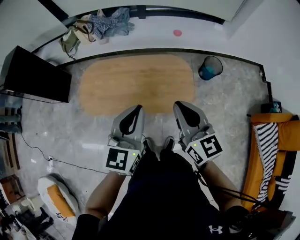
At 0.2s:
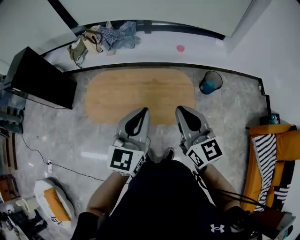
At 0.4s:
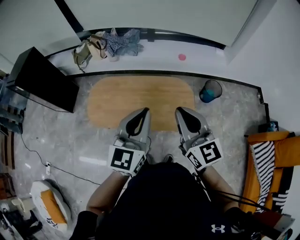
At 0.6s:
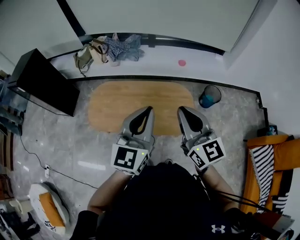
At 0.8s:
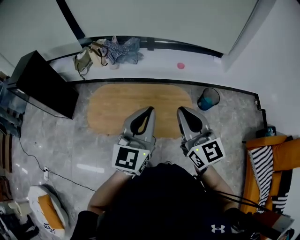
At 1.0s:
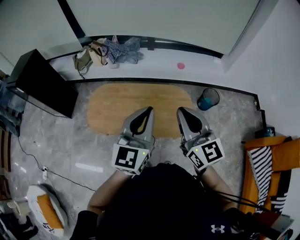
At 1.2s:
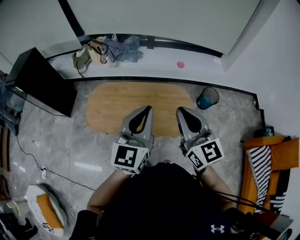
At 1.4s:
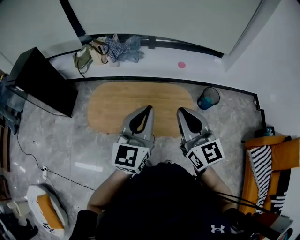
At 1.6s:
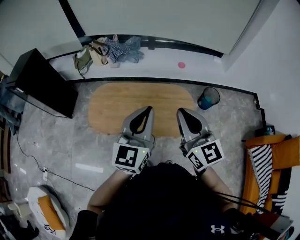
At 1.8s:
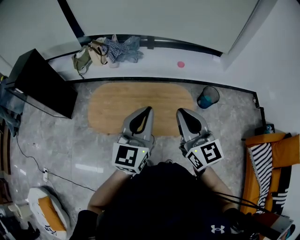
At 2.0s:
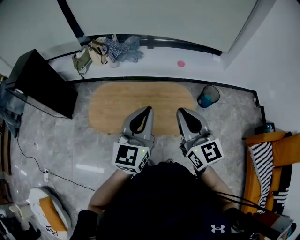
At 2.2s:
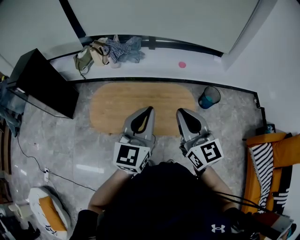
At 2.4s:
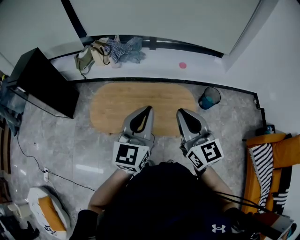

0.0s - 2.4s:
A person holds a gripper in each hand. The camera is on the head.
0.0s - 1.2s: The grippers both shift upward by about 10 cm.
1.2s - 2.4s: The grippers move only a little.

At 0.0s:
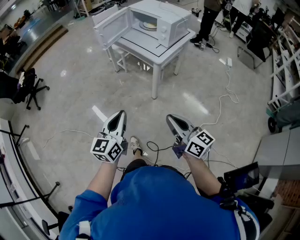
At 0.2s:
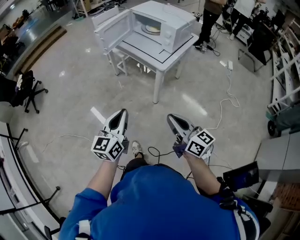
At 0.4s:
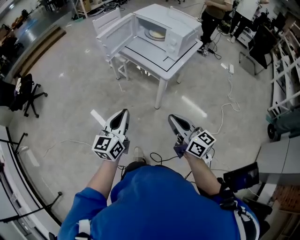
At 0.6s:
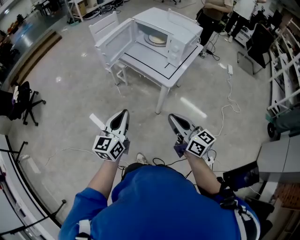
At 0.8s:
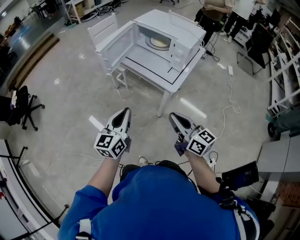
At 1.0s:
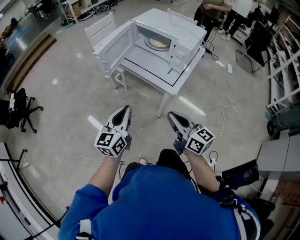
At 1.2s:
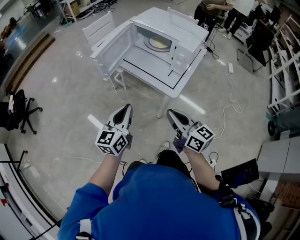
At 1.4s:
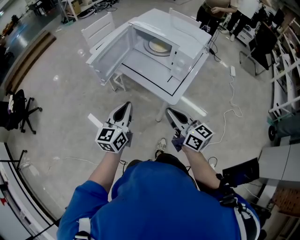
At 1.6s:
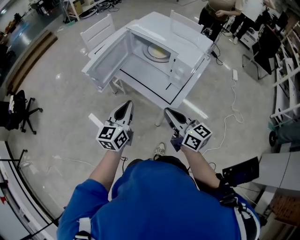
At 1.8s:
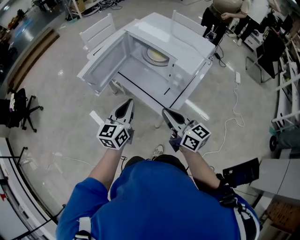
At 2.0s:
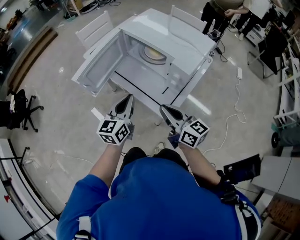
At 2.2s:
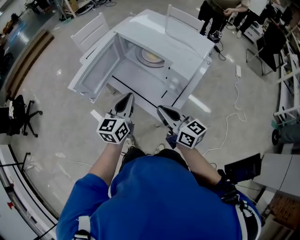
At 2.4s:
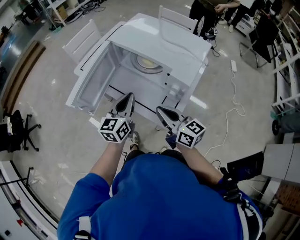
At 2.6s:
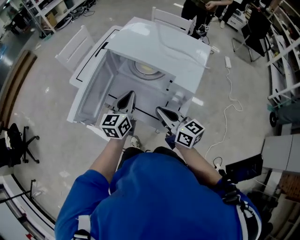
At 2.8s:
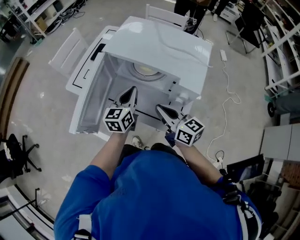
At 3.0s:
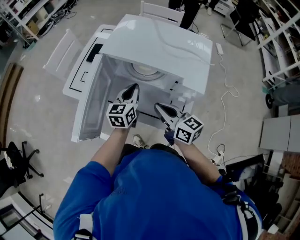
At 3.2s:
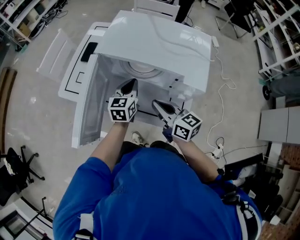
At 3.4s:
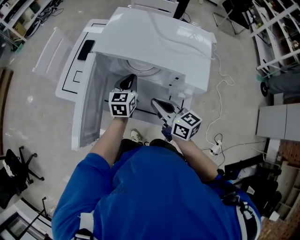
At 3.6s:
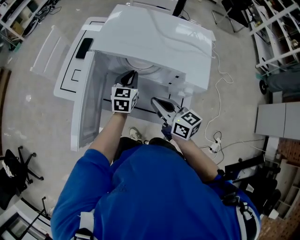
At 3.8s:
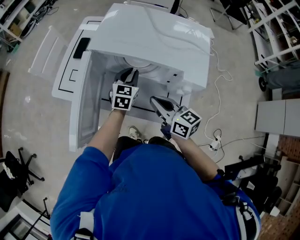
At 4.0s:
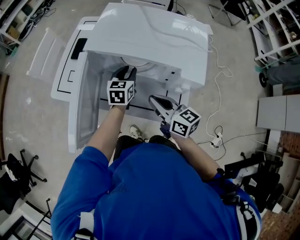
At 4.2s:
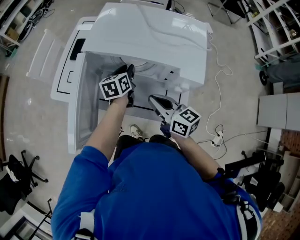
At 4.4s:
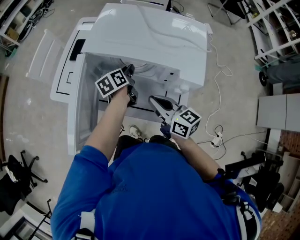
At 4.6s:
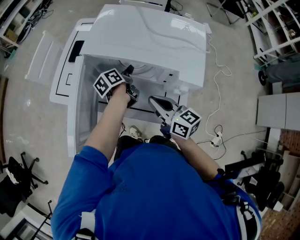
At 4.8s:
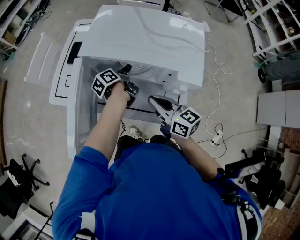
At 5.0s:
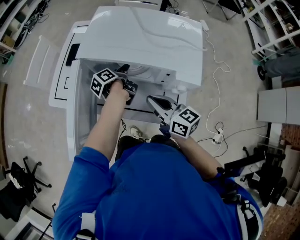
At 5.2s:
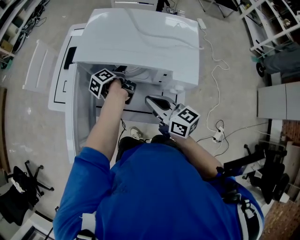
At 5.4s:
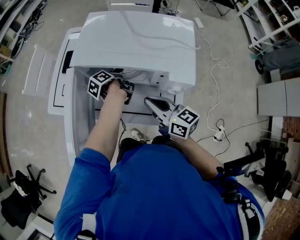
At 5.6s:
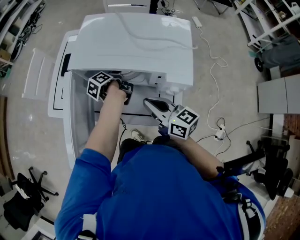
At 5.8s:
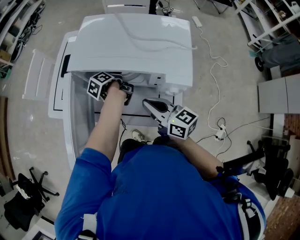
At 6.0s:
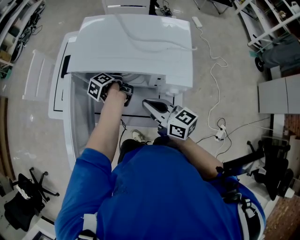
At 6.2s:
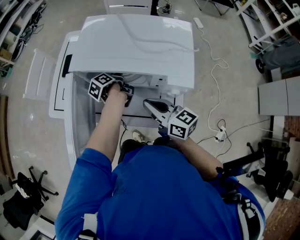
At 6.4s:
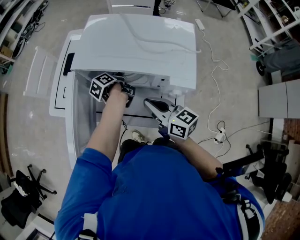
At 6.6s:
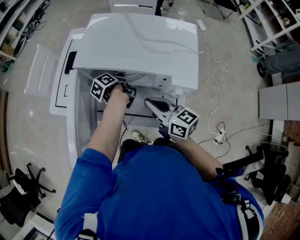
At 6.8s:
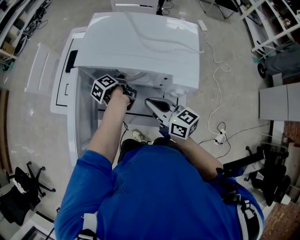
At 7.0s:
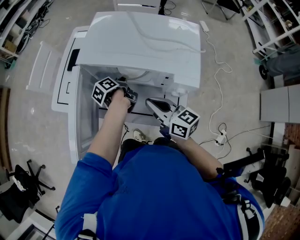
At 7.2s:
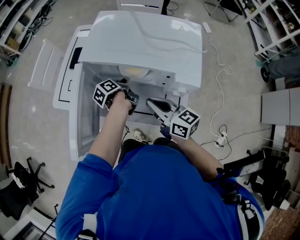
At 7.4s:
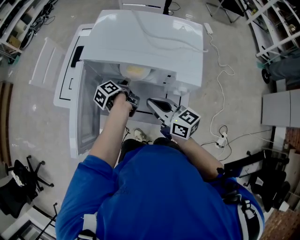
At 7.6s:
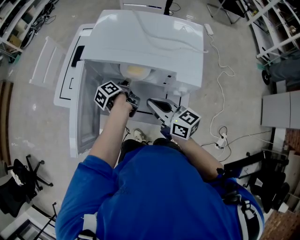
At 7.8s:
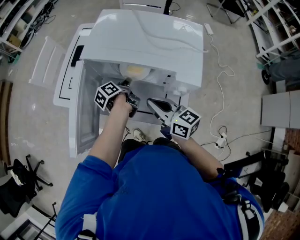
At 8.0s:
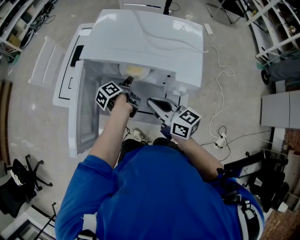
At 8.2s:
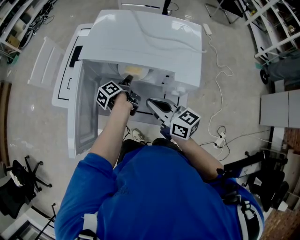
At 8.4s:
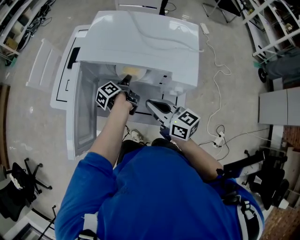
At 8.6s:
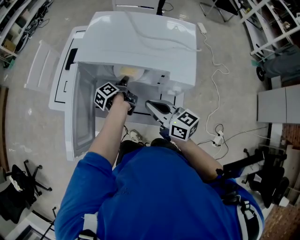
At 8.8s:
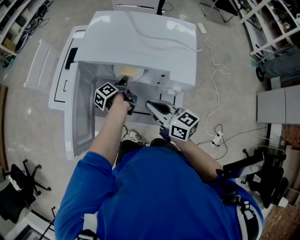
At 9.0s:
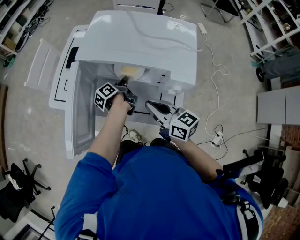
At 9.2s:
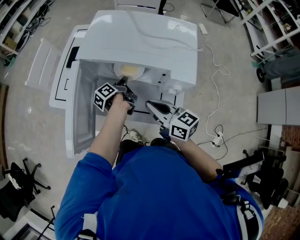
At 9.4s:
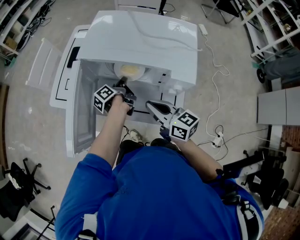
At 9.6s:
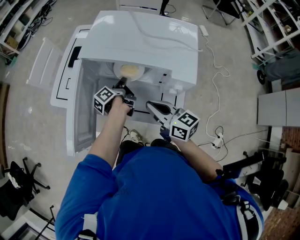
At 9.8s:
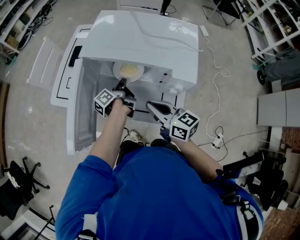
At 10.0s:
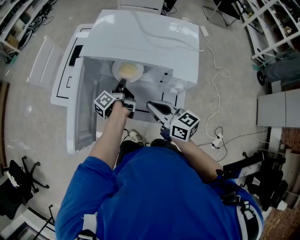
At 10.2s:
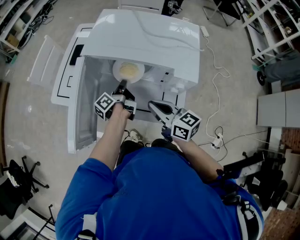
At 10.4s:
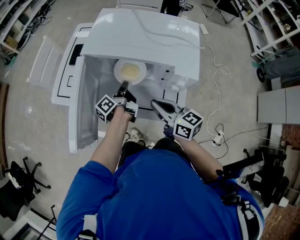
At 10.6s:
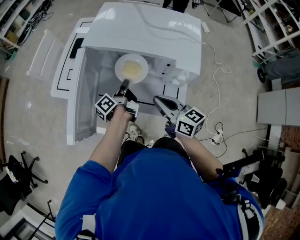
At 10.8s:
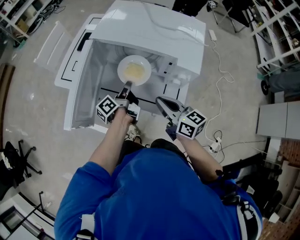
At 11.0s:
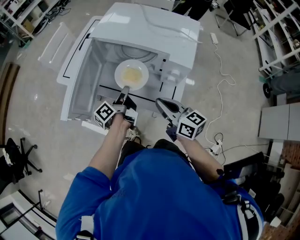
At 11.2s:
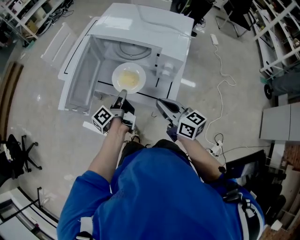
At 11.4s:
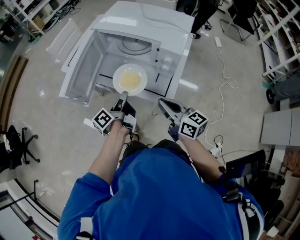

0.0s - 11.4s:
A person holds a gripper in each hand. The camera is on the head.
0.0s - 1.4s: The two grippers go approximately 35 cm forward.
1.4s - 2.8s: Both grippers travel together forward, about 25 cm.
2.8s - 4.2s: The left gripper heads forward and downward, covering some 15 cm, rotates about 20 degrees, and opens its fingers.
4.2s - 5.6s: The left gripper rolls counterclockwise, seen from behind, by approximately 50 degrees.
5.6s - 7.2s: The left gripper closes up.
7.2s - 8.6s: The left gripper opens its fingers.
8.6s - 10.0s: The left gripper closes up.
10.0s - 11.4s: The left gripper travels backward by about 25 cm; the right gripper goes approximately 15 cm backward.

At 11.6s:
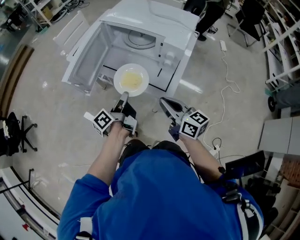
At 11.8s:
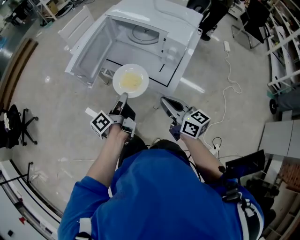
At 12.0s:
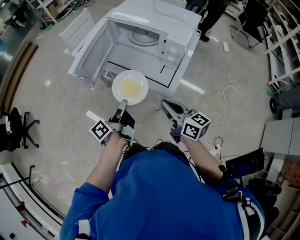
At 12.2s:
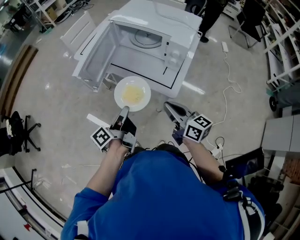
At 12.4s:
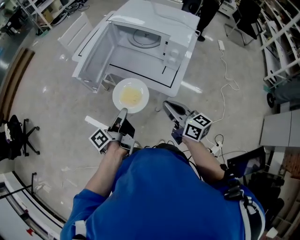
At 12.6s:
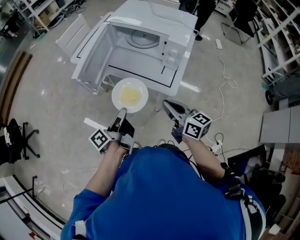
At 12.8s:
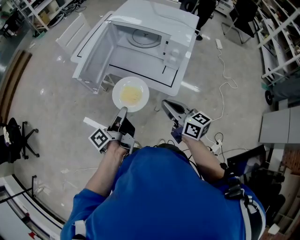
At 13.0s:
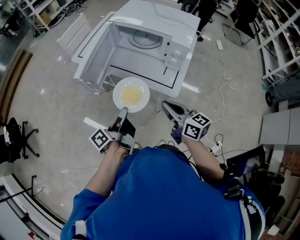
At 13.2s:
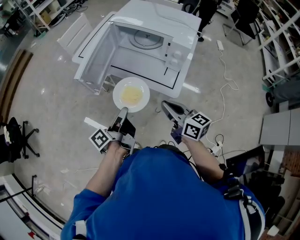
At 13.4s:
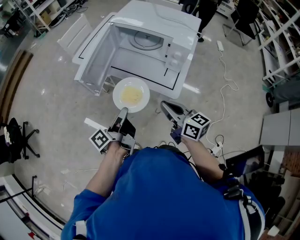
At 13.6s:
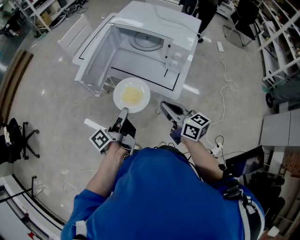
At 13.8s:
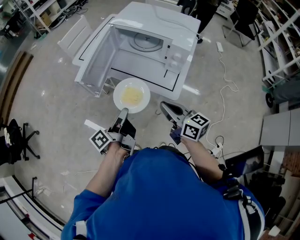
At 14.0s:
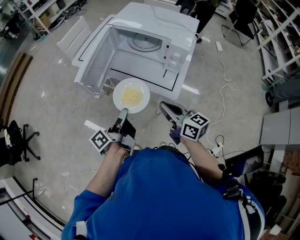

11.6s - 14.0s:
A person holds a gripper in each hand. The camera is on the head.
11.6s - 12.8s: The right gripper ends up roughly 5 cm from where it was. The left gripper is displaced backward and to the left by approximately 10 cm.
12.8s - 14.0s: The grippers make only small movements.

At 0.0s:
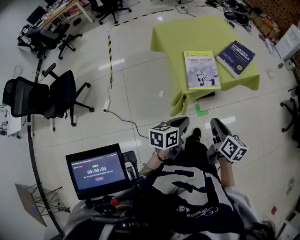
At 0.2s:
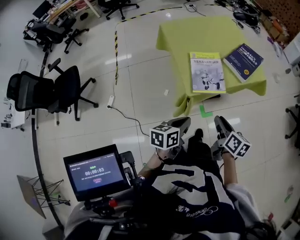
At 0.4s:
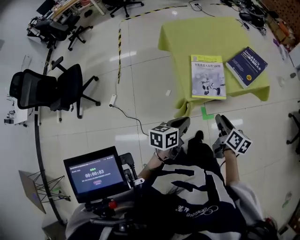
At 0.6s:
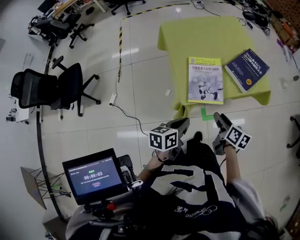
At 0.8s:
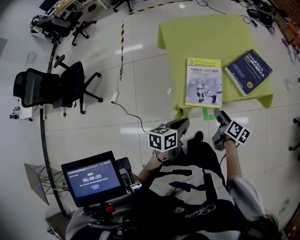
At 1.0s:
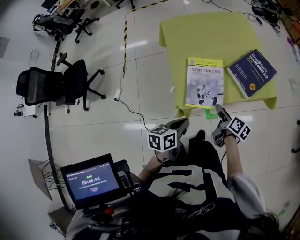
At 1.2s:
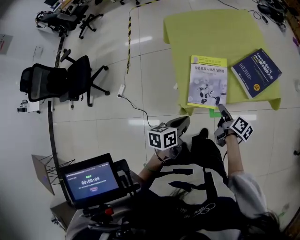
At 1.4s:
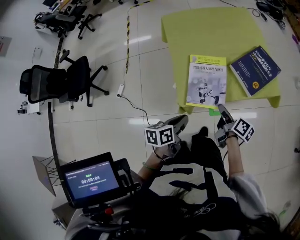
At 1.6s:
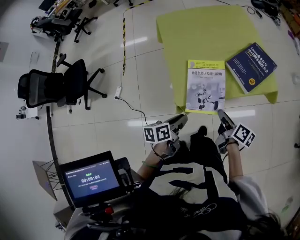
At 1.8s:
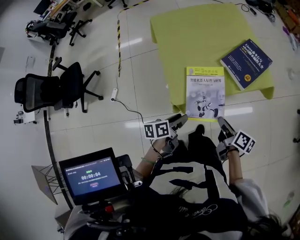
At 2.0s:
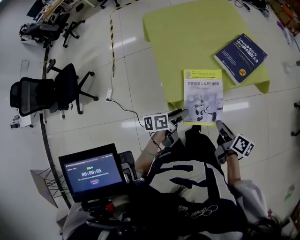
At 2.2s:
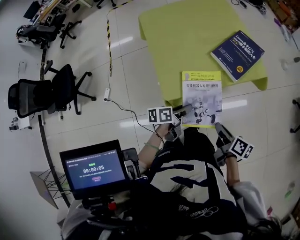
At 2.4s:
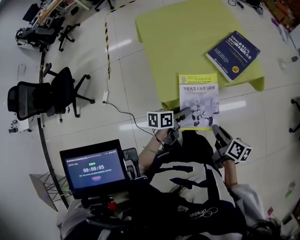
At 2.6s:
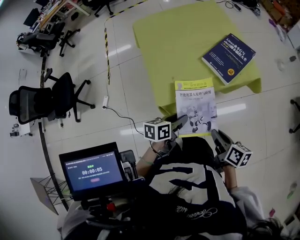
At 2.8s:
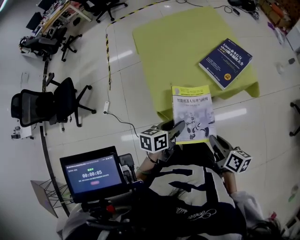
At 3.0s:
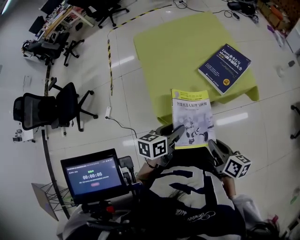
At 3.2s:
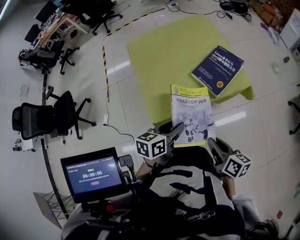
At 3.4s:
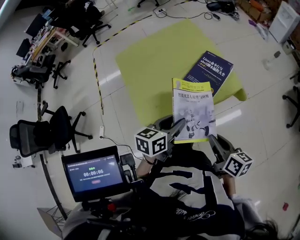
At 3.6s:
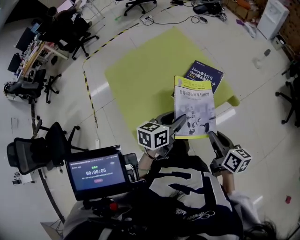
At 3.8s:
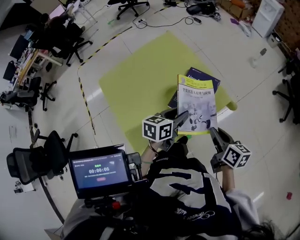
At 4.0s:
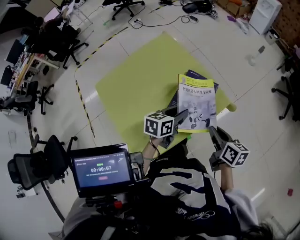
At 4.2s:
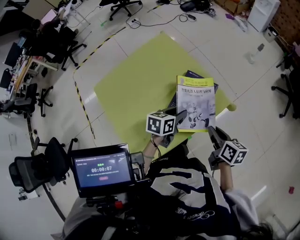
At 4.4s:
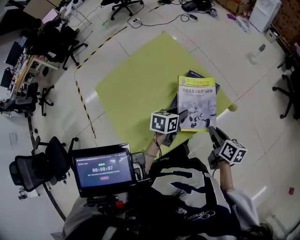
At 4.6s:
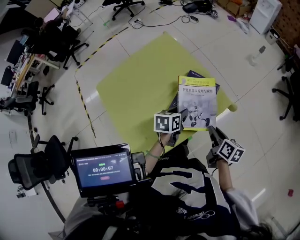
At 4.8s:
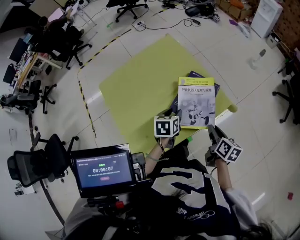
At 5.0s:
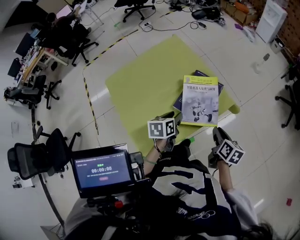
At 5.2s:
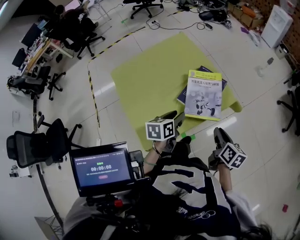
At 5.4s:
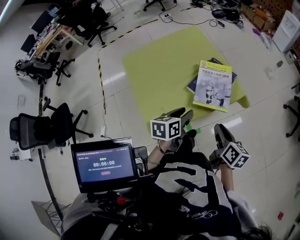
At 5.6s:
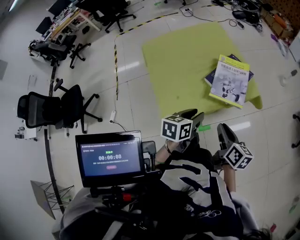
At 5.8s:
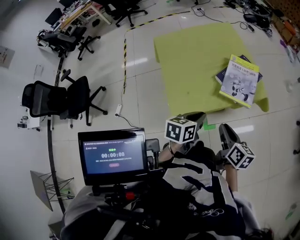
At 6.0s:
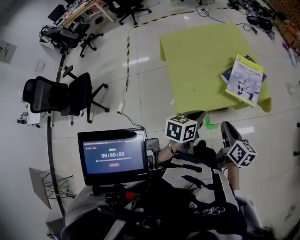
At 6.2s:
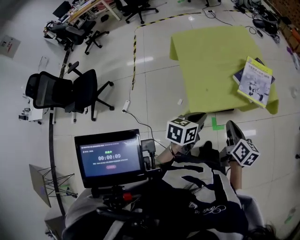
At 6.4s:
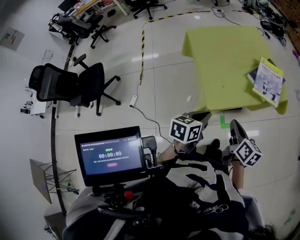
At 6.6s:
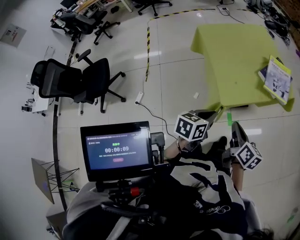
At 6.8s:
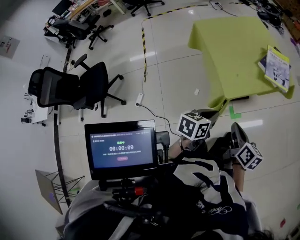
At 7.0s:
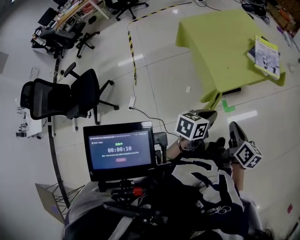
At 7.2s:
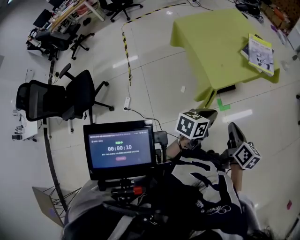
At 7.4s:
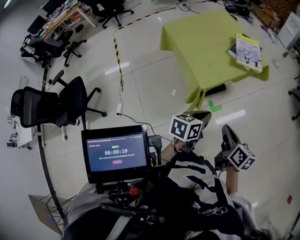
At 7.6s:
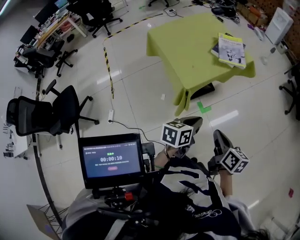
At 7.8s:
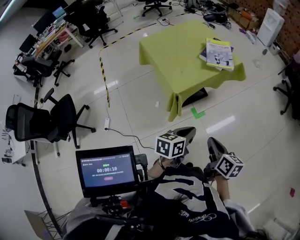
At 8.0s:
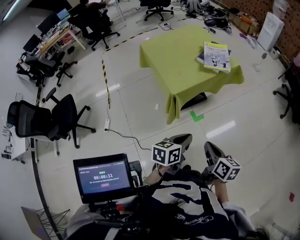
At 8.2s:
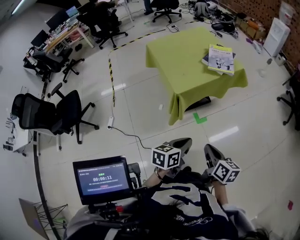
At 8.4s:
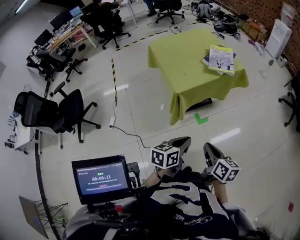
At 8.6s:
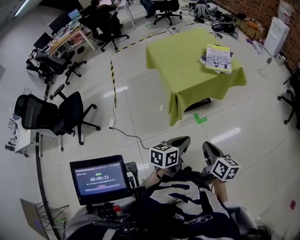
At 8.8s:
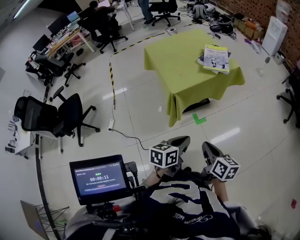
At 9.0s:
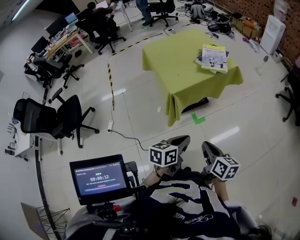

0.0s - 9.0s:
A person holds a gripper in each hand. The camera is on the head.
0.0s - 1.6s: The left gripper heads forward and downward, covering approximately 15 cm, and turns by approximately 20 degrees. The right gripper heads forward, downward and to the right, covering approximately 25 cm, rotates approximately 30 degrees, and opens, then closes again.
1.6s - 3.0s: The left gripper travels upward and to the right by some 10 cm, turns by about 20 degrees, and opens; the right gripper goes about 15 cm backward, upward and to the right.
3.0s - 4.4s: The right gripper moves approximately 25 cm, and swivels some 30 degrees. The left gripper ends up some 30 cm from where it was, and swivels about 30 degrees.
4.4s - 6.0s: The right gripper goes approximately 25 cm backward and to the left, and swivels about 20 degrees; the left gripper is displaced backward by some 25 cm, turns by some 20 degrees, and closes.
6.0s - 7.6s: Both grippers move backward, about 25 cm.
7.6s - 9.0s: Both grippers move backward and to the right, roughly 10 cm.
